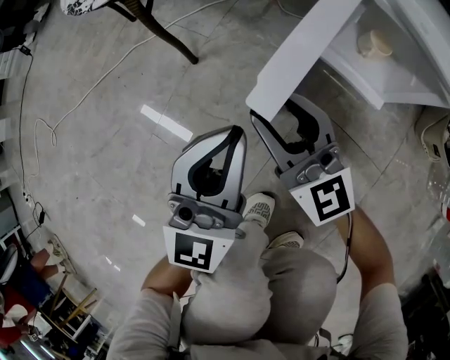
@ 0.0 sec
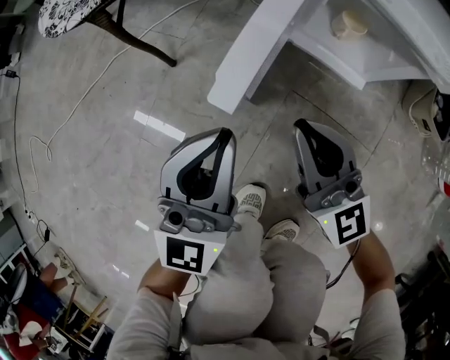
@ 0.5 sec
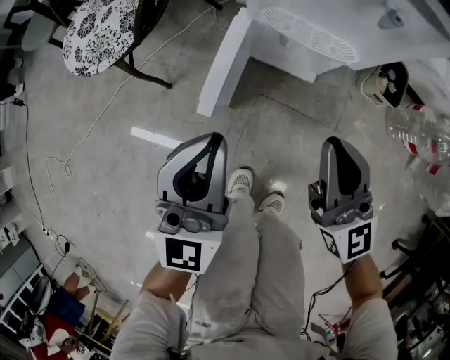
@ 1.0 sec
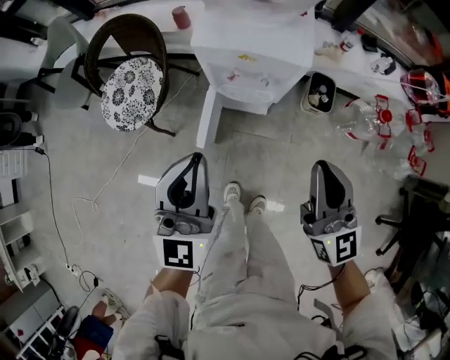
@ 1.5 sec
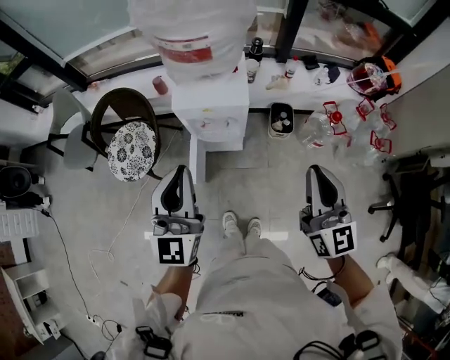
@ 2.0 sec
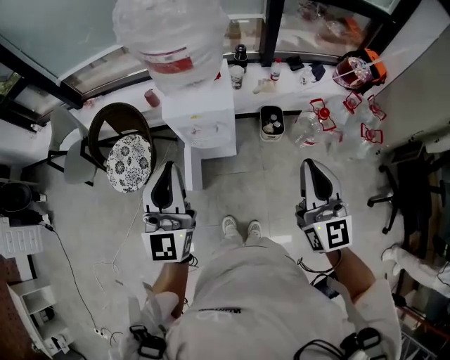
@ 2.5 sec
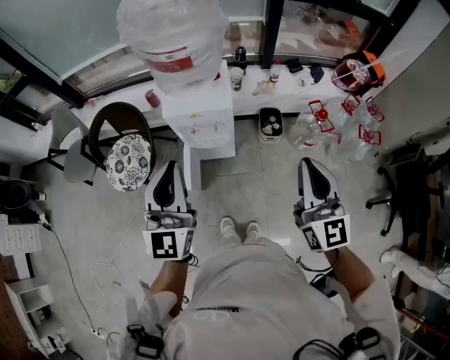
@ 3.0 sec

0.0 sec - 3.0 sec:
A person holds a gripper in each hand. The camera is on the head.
0.0 sec - 1.5 sec: Both grippers move upward, about 60 cm. The right gripper swivels some 40 degrees, and closes up.
1.5 sec - 3.0 sec: The right gripper goes about 25 cm upward, to the right and backward; the left gripper shifts about 20 cm upward.

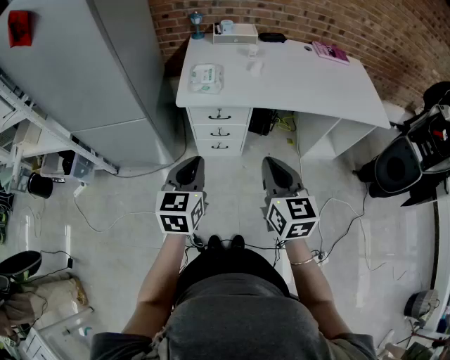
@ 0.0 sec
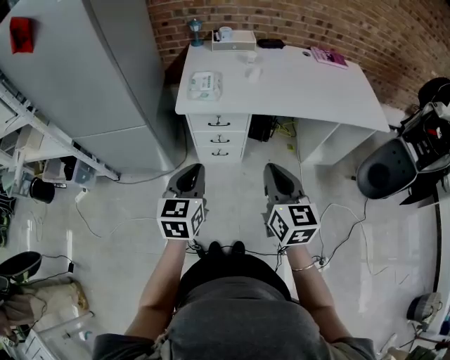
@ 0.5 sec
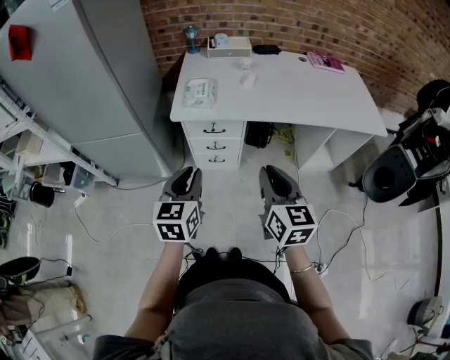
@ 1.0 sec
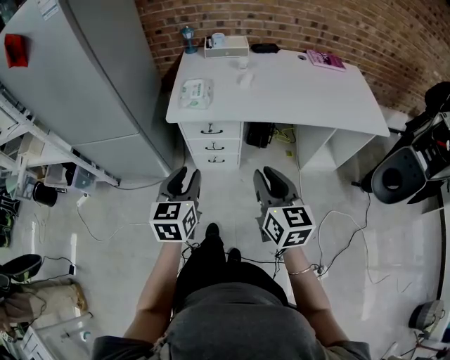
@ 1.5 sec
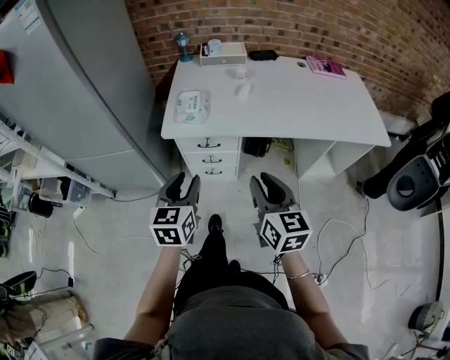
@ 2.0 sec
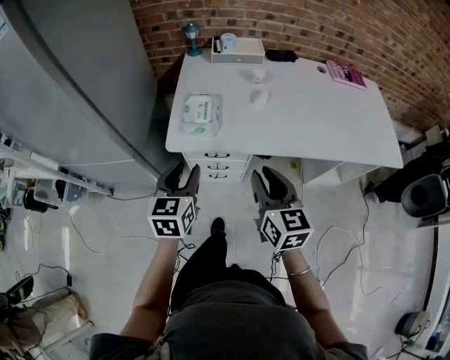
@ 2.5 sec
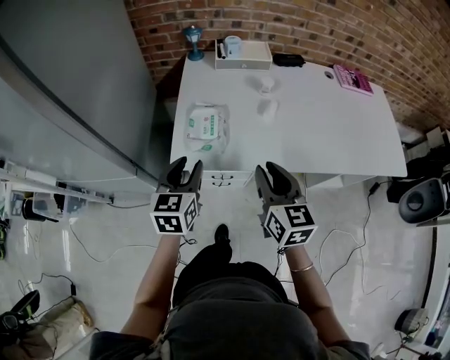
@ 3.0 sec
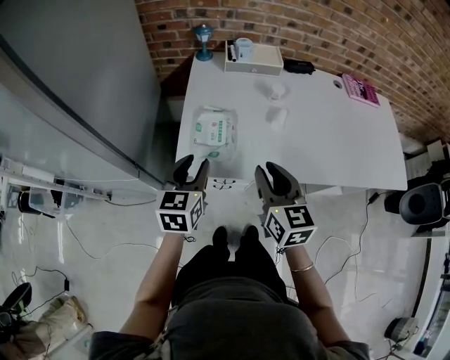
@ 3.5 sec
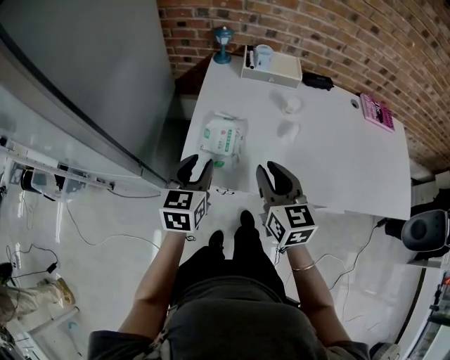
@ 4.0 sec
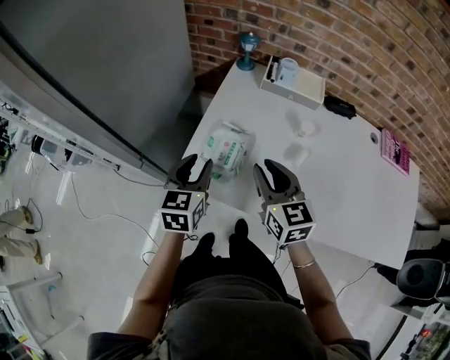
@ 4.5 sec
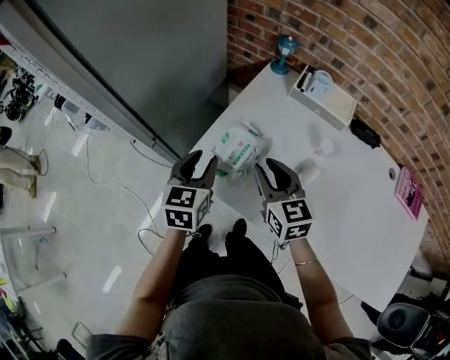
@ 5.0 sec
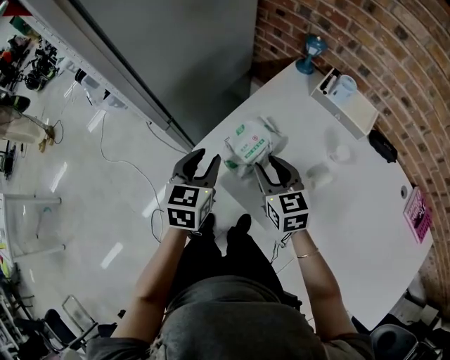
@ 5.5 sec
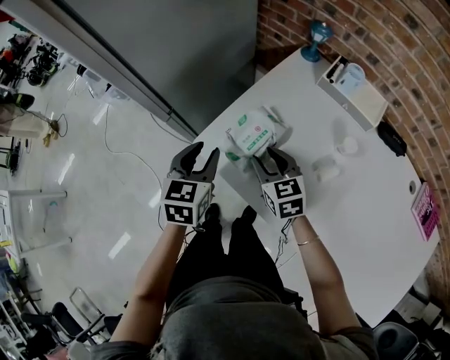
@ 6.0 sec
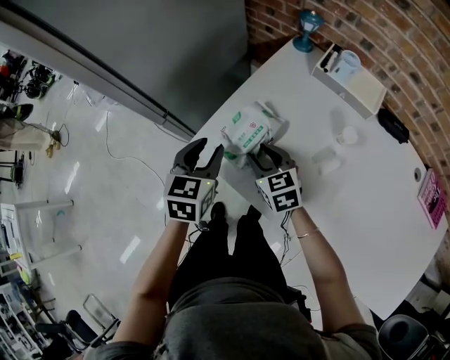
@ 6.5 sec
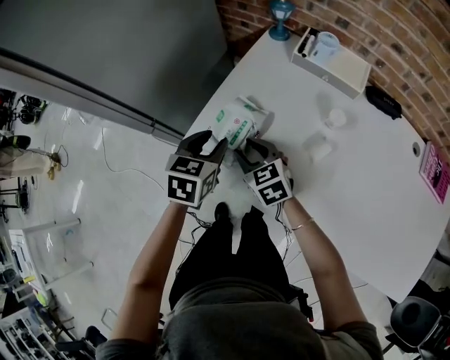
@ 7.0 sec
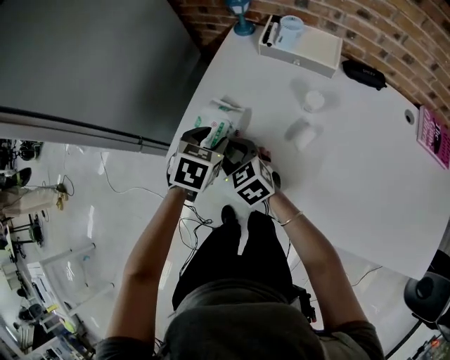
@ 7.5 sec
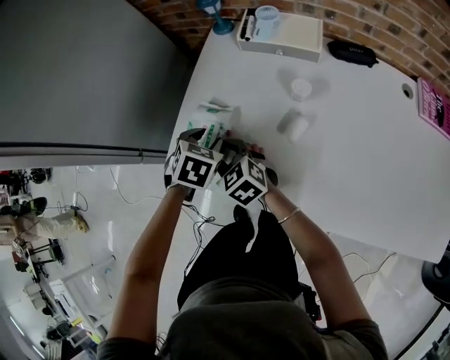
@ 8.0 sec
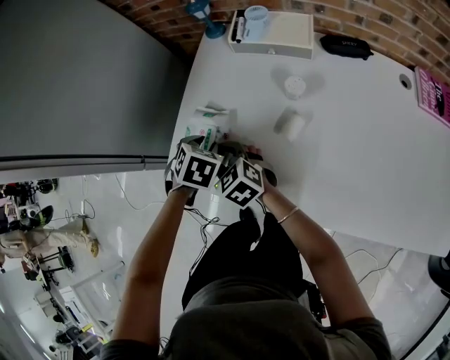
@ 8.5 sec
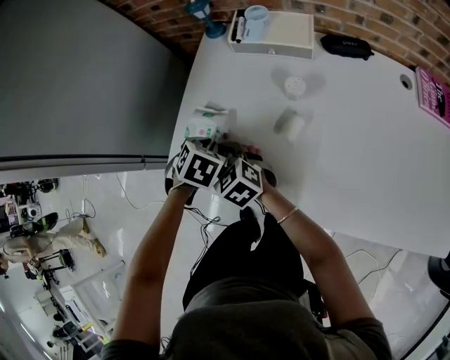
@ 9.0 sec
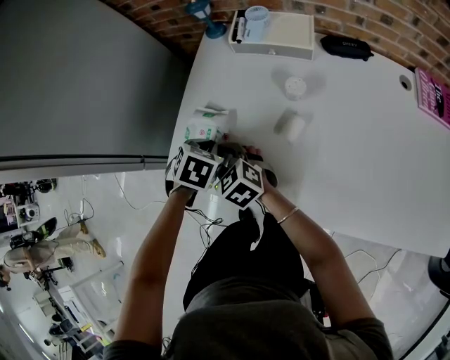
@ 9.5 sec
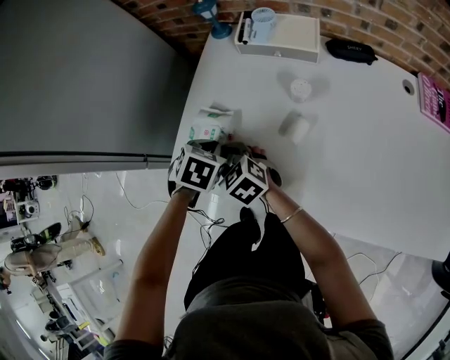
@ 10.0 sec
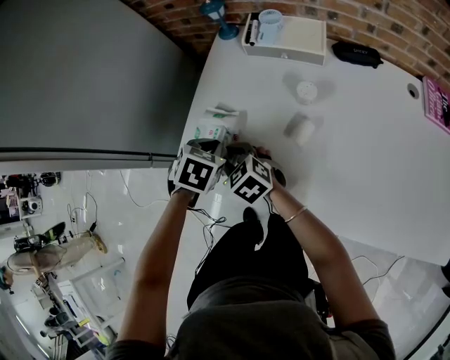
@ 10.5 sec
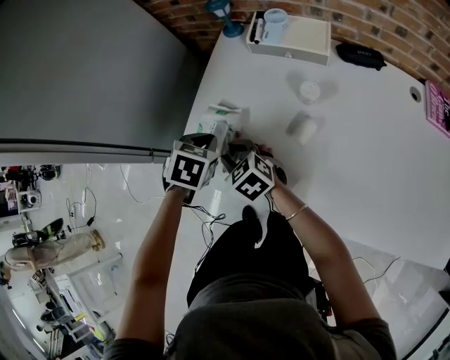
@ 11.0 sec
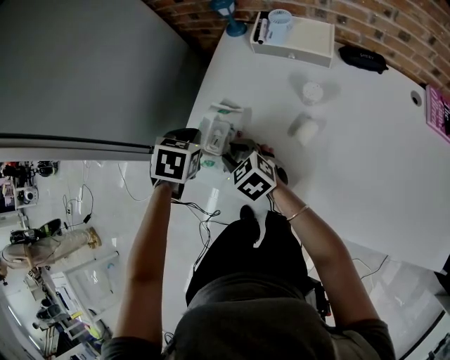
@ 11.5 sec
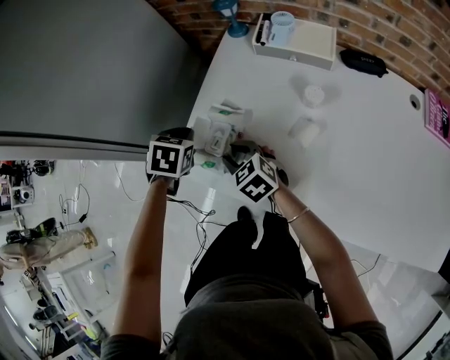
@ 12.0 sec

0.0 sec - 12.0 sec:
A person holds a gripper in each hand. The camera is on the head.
0.0 sec - 2.0 sec: The grippers both shift forward by roughly 5 cm. The left gripper opens its fingers, while the right gripper opens up.
2.0 sec - 4.0 sec: The two grippers go roughly 30 cm forward.
4.0 sec - 6.0 sec: The left gripper swivels roughly 30 degrees; the right gripper moves downward, approximately 15 cm, and changes its angle by roughly 50 degrees.
6.0 sec - 8.0 sec: The left gripper travels to the right and downward by about 15 cm, and tips its fingers downward by some 30 degrees.
8.0 sec - 10.0 sec: The left gripper closes up.
10.0 sec - 12.0 sec: The left gripper travels to the left and forward by some 10 cm.

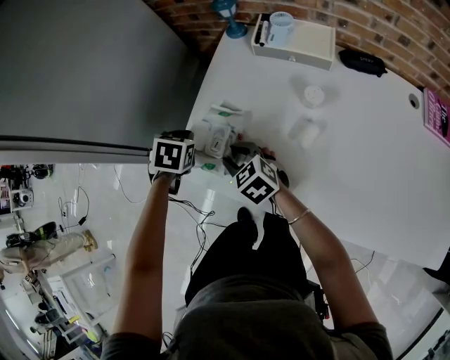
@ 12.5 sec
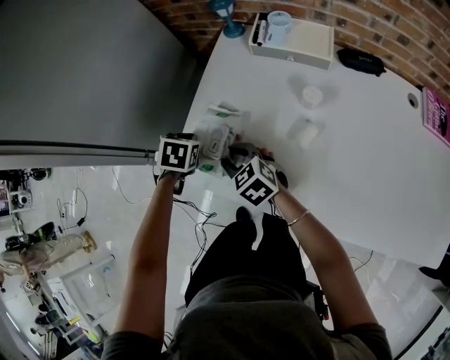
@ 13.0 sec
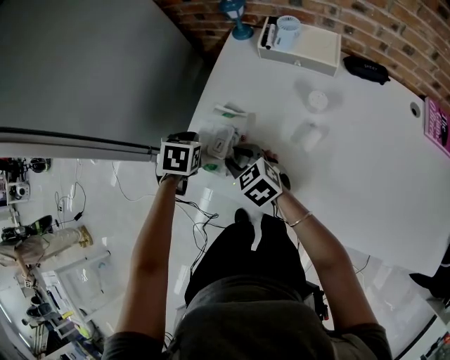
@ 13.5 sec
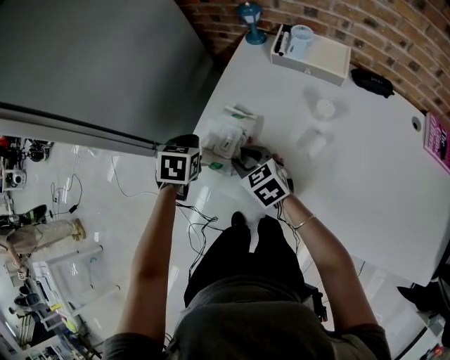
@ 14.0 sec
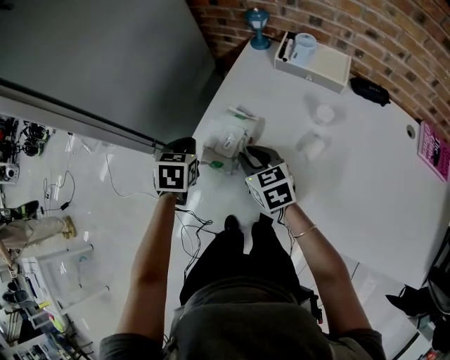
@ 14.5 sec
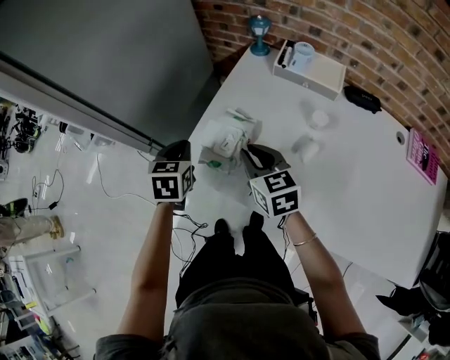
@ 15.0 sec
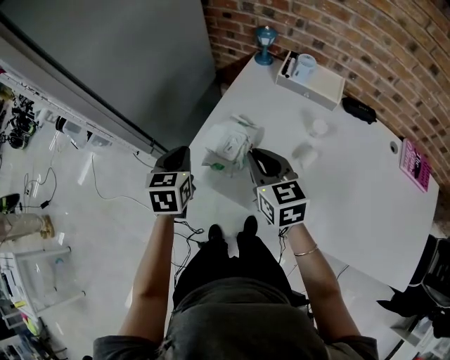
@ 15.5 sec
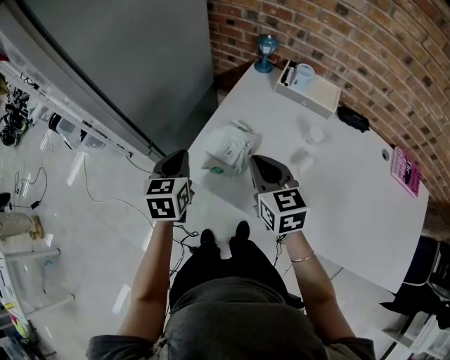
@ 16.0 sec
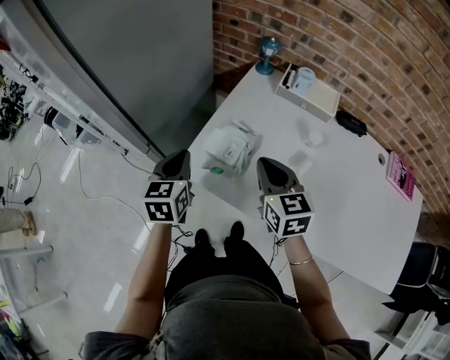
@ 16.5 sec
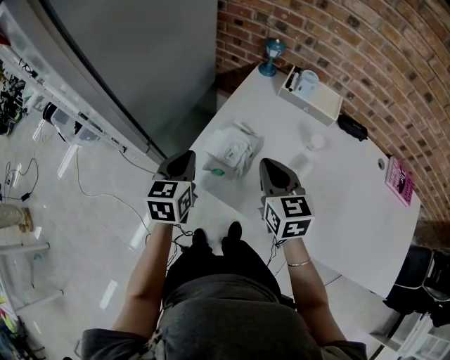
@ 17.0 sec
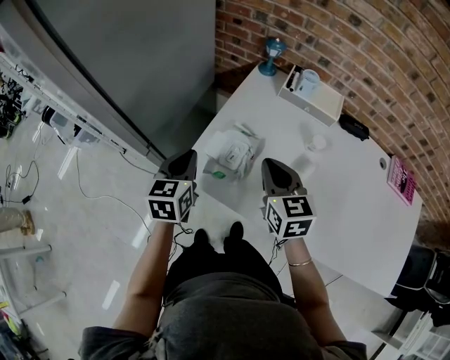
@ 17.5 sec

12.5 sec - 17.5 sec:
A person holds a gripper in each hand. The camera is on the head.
12.5 sec - 15.0 sec: The right gripper goes roughly 10 cm upward, while the left gripper shifts approximately 5 cm upward and to the left, and turns by about 30 degrees.
15.0 sec - 17.5 sec: The left gripper swivels roughly 20 degrees.

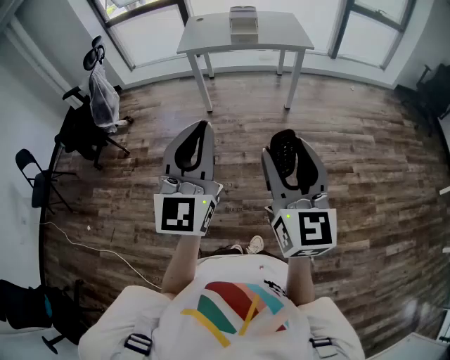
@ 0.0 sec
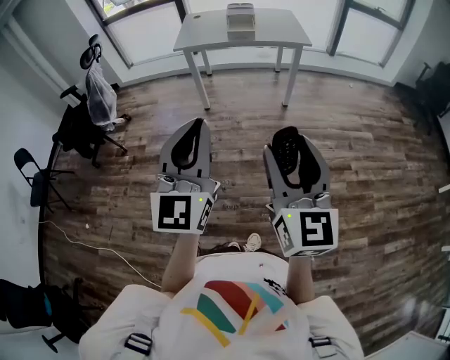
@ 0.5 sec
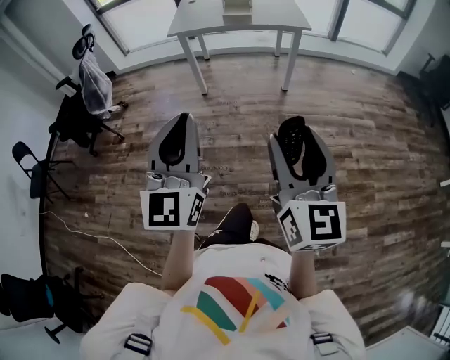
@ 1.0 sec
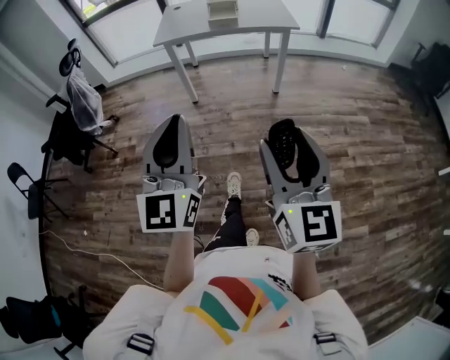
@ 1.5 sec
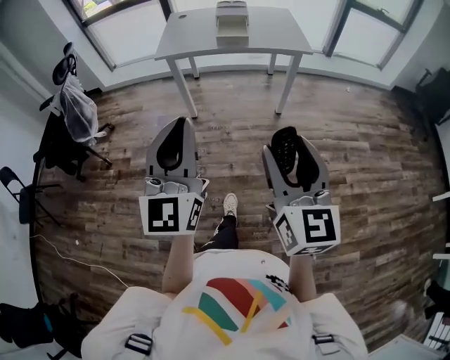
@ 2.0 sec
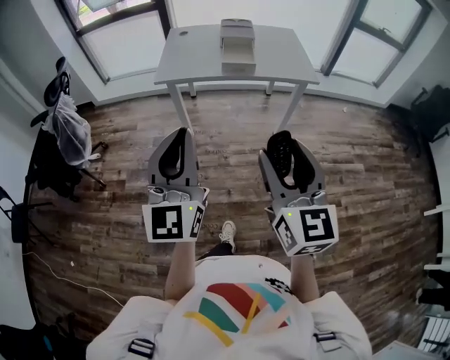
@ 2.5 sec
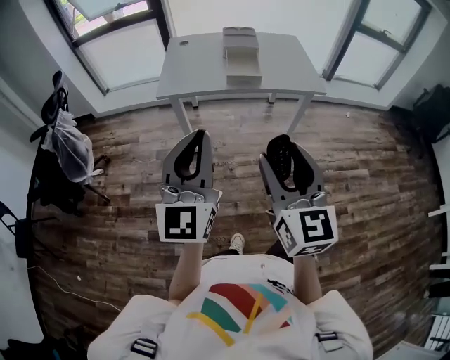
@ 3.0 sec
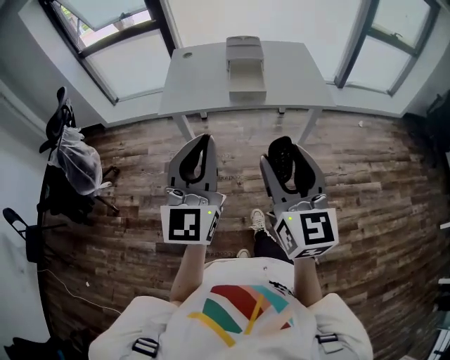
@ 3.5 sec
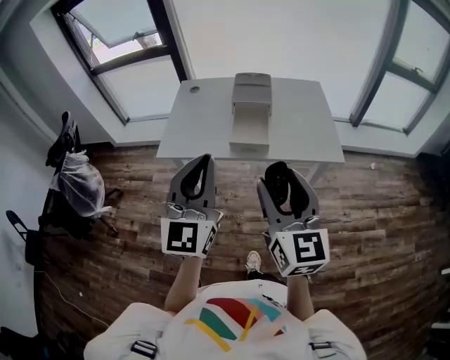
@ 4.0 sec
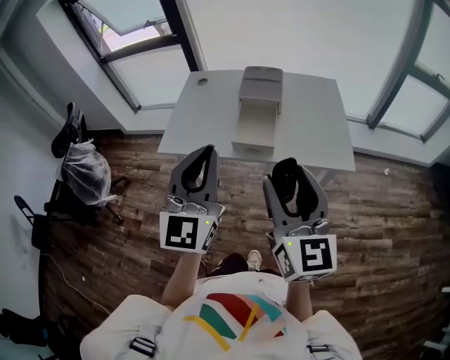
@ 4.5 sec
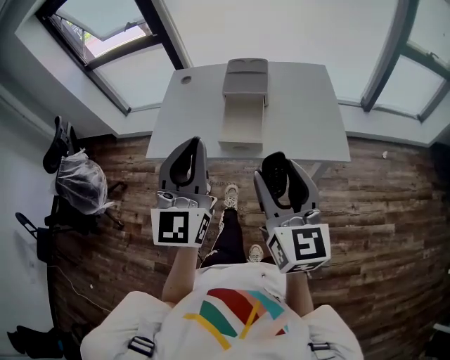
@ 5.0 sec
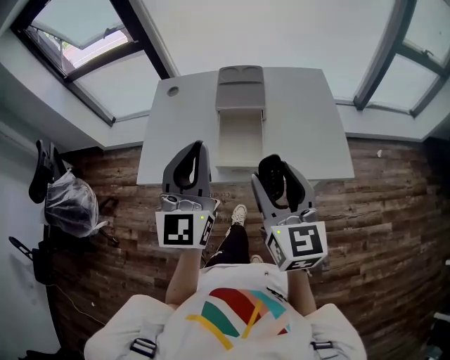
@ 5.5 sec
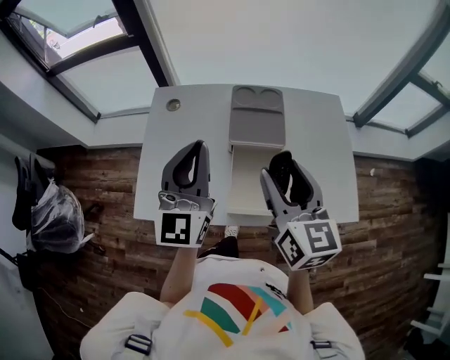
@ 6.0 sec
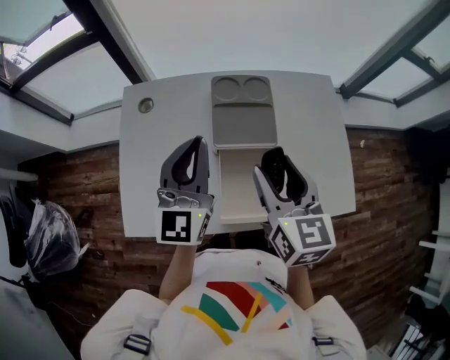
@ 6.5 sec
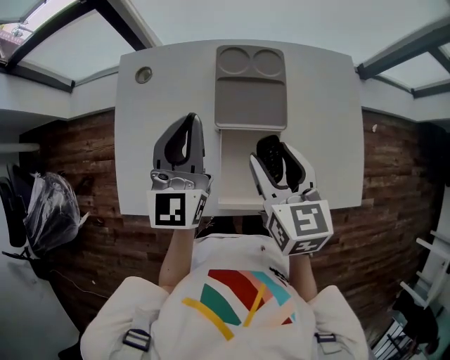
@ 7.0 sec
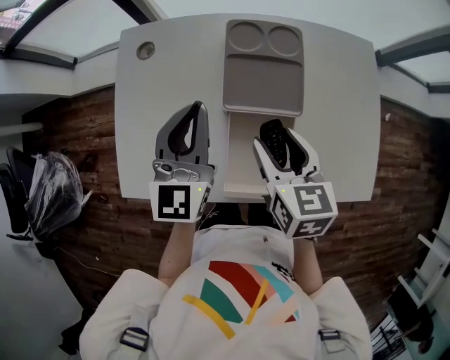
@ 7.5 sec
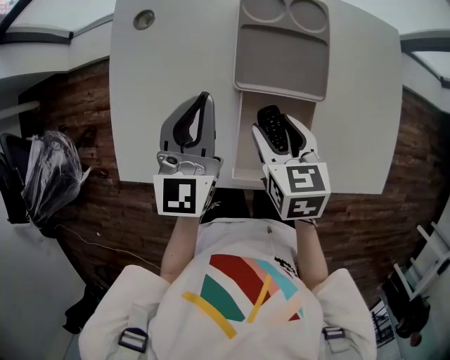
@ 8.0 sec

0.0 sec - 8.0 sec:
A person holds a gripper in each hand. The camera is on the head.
0.0 sec - 2.0 sec: Both grippers travel together forward, approximately 20 cm.
2.0 sec - 4.0 sec: The two grippers travel together, forward, roughly 50 cm.
4.0 sec - 6.0 sec: Both grippers move forward, some 40 cm.
6.0 sec - 8.0 sec: The left gripper heads downward and forward, covering about 20 cm, and changes its angle by some 20 degrees. Meanwhile the right gripper heads downward, covering some 25 cm, and tips its fingers downward by approximately 40 degrees.
